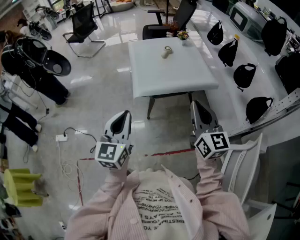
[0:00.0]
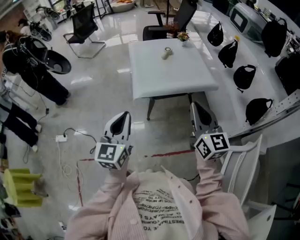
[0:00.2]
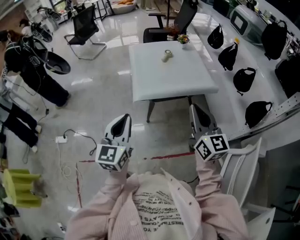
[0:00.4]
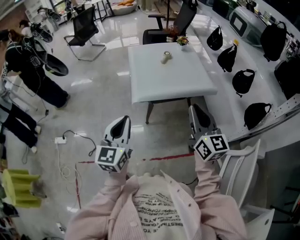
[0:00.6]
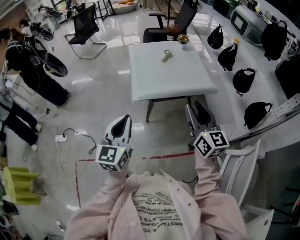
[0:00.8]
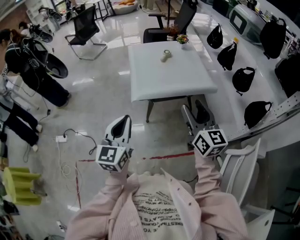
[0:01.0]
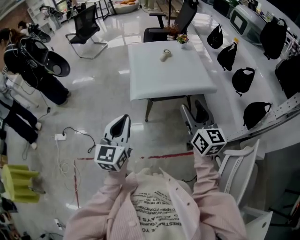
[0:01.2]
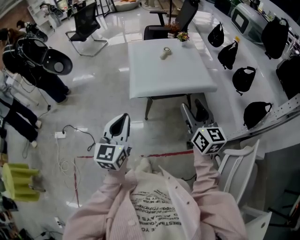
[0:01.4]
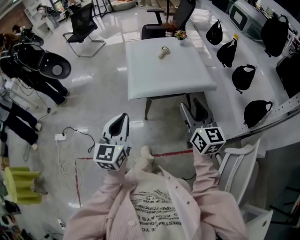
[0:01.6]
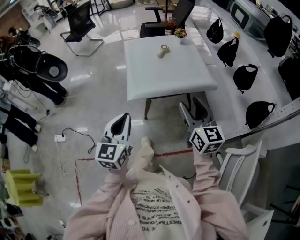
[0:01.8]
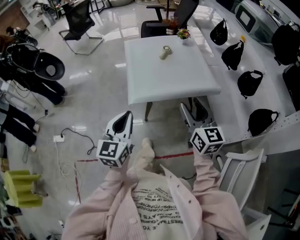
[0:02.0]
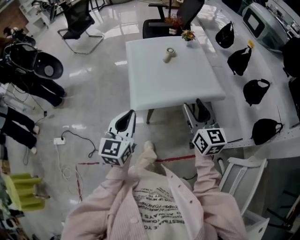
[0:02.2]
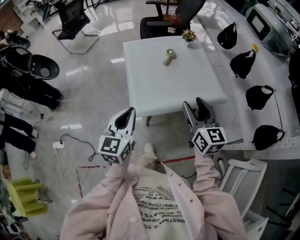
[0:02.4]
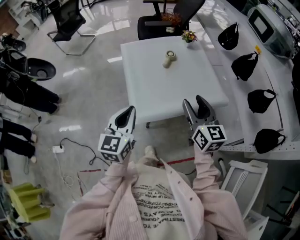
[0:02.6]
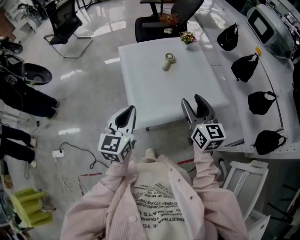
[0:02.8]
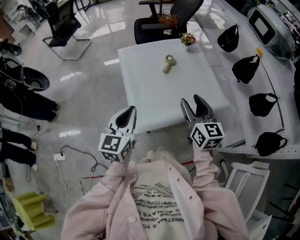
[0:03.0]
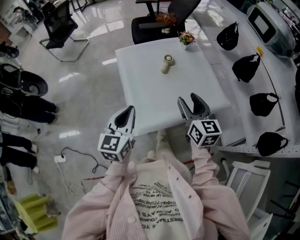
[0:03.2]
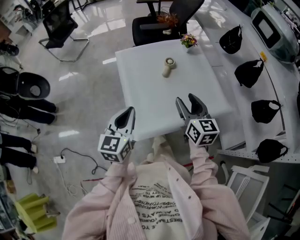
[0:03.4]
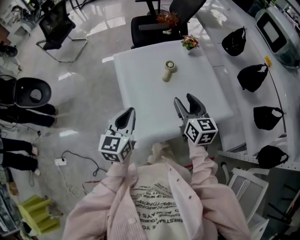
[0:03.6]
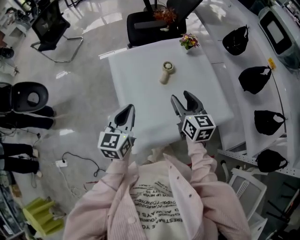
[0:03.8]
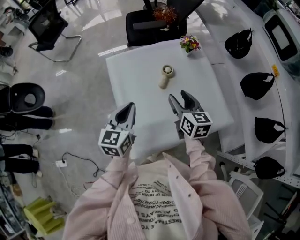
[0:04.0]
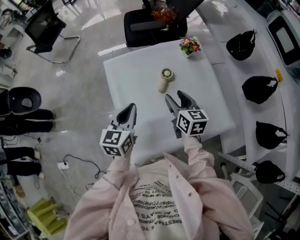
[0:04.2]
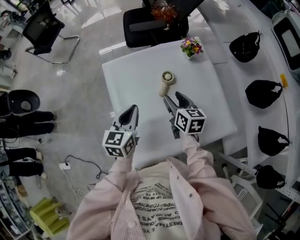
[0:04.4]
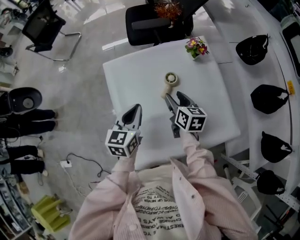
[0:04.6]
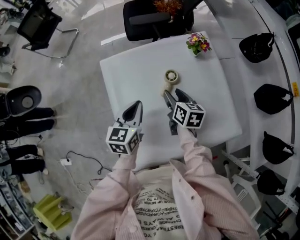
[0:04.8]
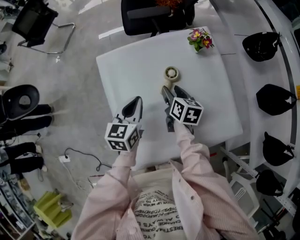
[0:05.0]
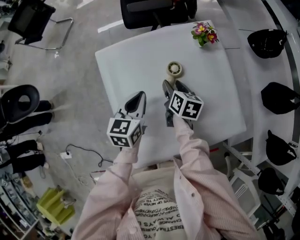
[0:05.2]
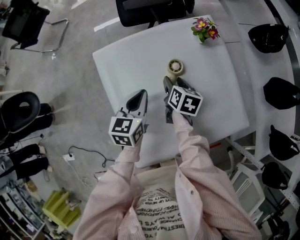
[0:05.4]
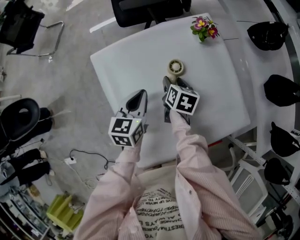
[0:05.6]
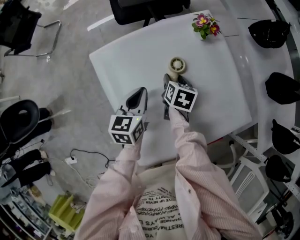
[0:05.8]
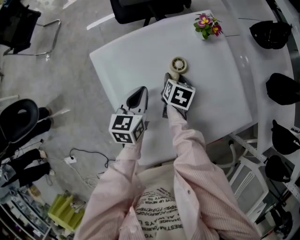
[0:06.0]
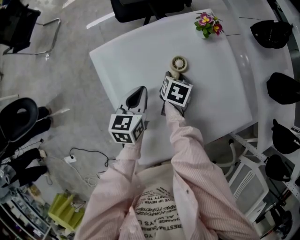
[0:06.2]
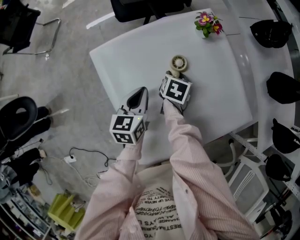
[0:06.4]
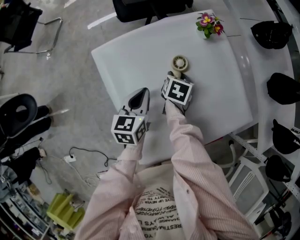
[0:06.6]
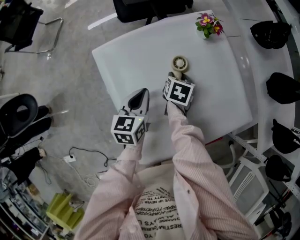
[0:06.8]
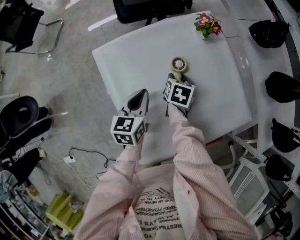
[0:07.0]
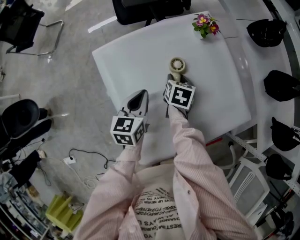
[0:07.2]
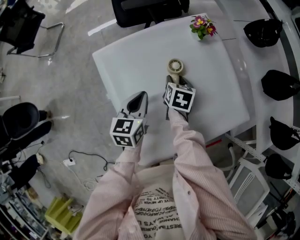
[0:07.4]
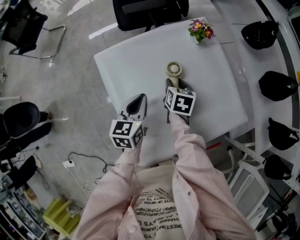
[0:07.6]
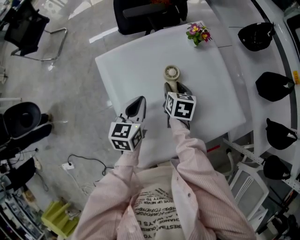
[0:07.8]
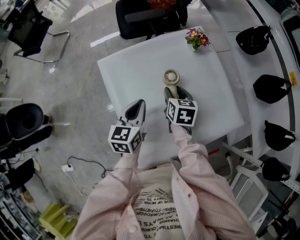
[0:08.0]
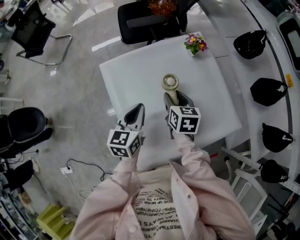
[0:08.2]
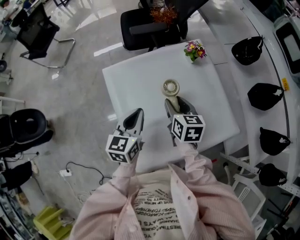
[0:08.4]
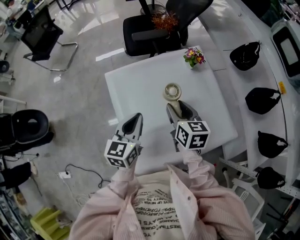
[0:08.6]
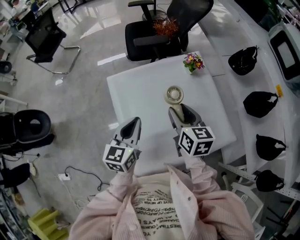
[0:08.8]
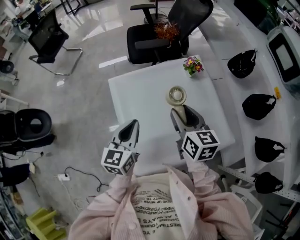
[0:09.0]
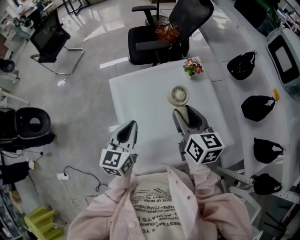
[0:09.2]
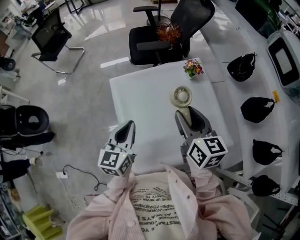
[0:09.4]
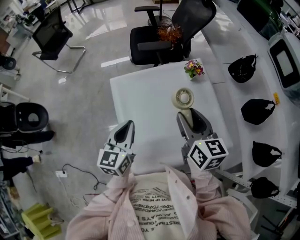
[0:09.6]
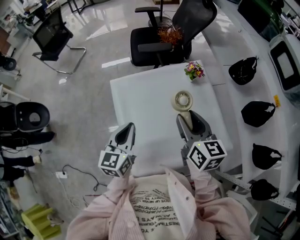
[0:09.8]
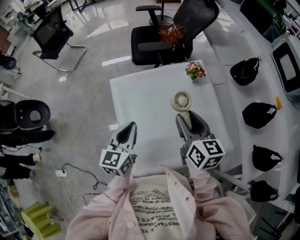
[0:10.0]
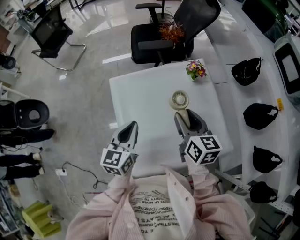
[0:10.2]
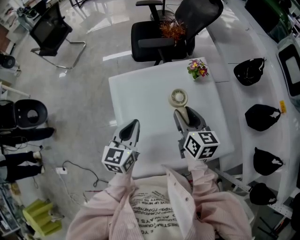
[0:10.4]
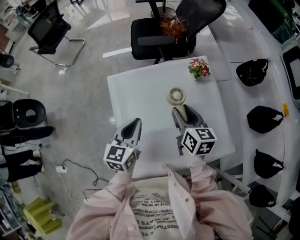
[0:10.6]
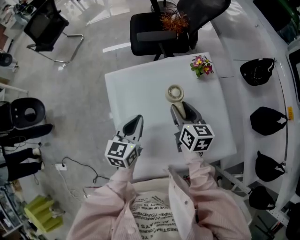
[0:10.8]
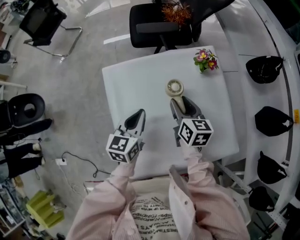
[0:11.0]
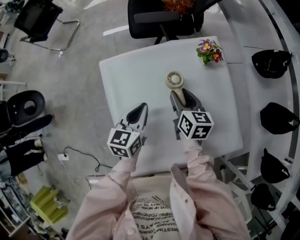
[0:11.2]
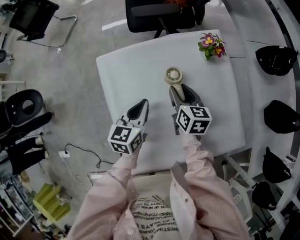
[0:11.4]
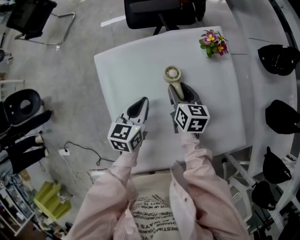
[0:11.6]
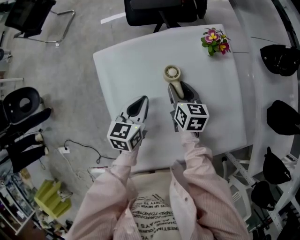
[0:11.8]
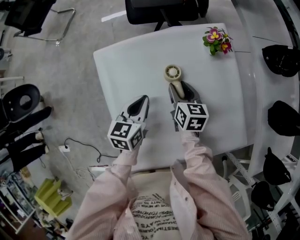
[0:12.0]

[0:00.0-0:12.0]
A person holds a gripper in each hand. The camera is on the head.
0:00.0 to 0:01.6: The right gripper shifts by some 5 cm, and opens.
0:01.6 to 0:03.0: The grippers both shift forward by some 30 cm.
0:03.0 to 0:04.4: The two grippers go approximately 30 cm forward and downward. The right gripper swivels approximately 20 degrees.
0:04.4 to 0:06.0: Both grippers travel together downward and forward, approximately 15 cm. The right gripper rotates some 40 degrees.
0:06.0 to 0:07.6: The grippers stay close to where they were, moving slightly.
0:07.6 to 0:09.0: The right gripper moves upward, some 25 cm, and changes its angle by some 30 degrees. The left gripper travels upward and backward by some 15 cm.
0:09.0 to 0:10.4: The right gripper ends up about 5 cm from where it was.
0:10.4 to 0:12.0: The right gripper is displaced downward by about 20 cm. The left gripper goes some 15 cm downward and forward.

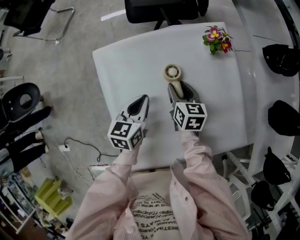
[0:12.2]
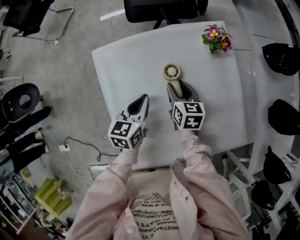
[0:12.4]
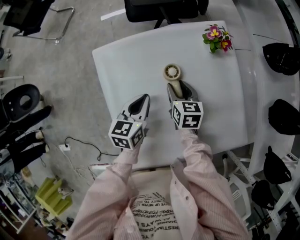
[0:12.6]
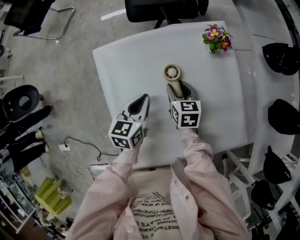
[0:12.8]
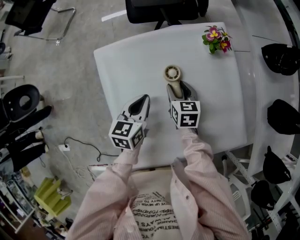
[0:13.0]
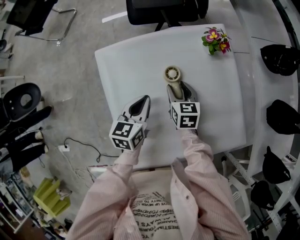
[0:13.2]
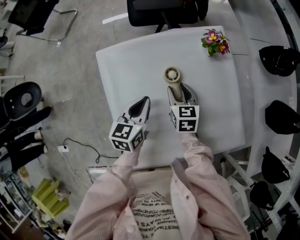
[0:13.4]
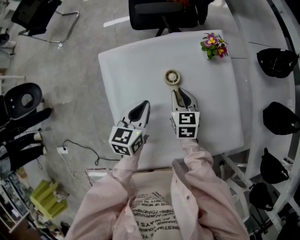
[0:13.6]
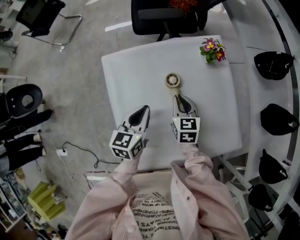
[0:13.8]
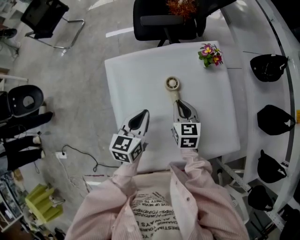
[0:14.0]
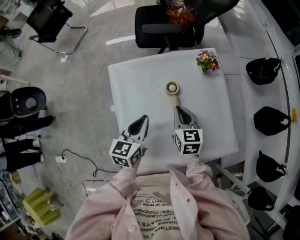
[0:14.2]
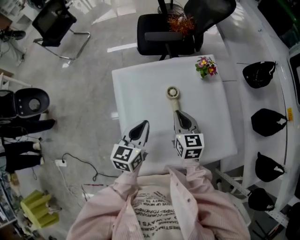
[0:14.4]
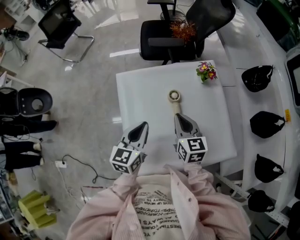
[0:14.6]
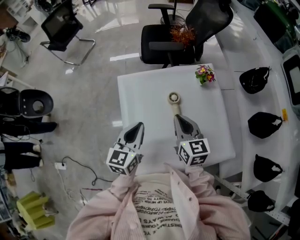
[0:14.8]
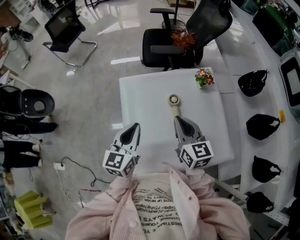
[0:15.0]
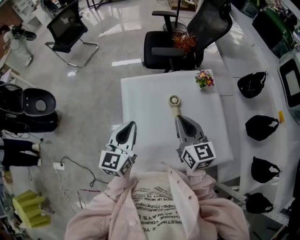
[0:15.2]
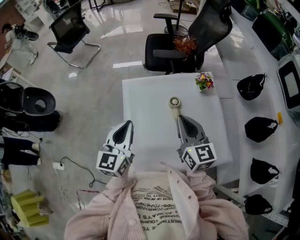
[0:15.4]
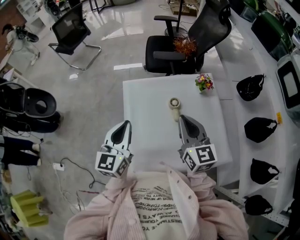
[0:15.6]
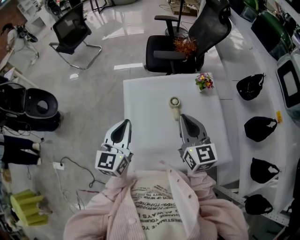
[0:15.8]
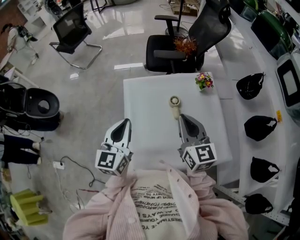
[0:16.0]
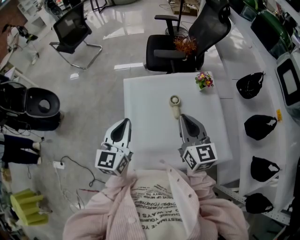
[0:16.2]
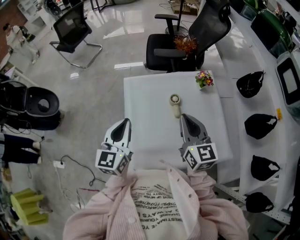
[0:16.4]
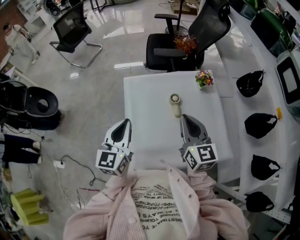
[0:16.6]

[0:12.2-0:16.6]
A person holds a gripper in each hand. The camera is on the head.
0:12.2 to 0:13.6: The right gripper closes.
0:13.6 to 0:15.2: The right gripper is displaced upward by some 25 cm, and changes its angle by about 30 degrees. The left gripper goes about 20 cm upward, backward and to the left, and rotates some 20 degrees.
0:15.2 to 0:16.6: There are only small adjustments of the grippers.

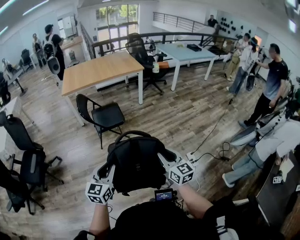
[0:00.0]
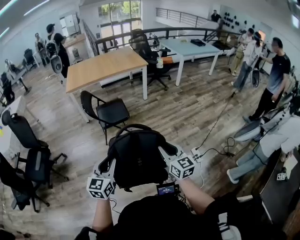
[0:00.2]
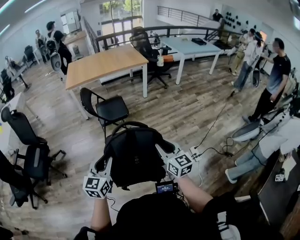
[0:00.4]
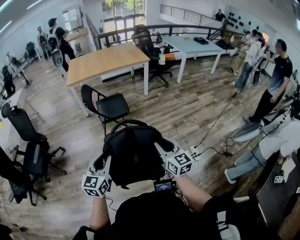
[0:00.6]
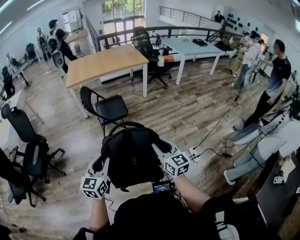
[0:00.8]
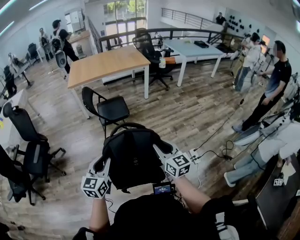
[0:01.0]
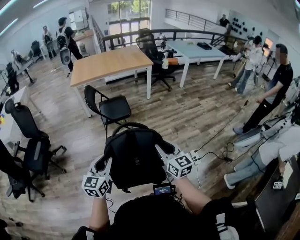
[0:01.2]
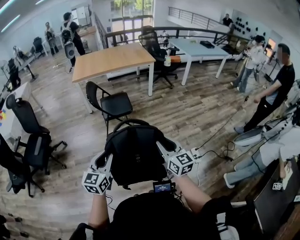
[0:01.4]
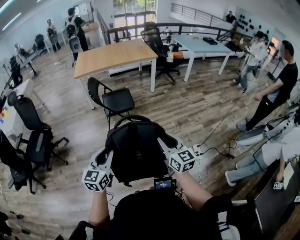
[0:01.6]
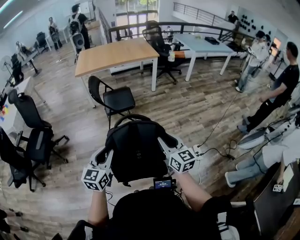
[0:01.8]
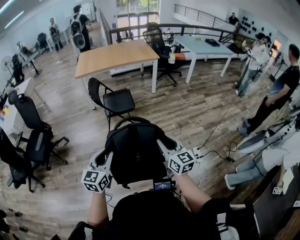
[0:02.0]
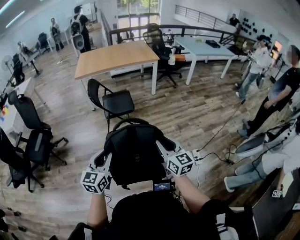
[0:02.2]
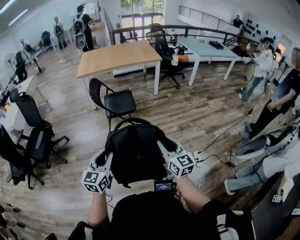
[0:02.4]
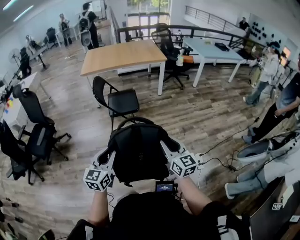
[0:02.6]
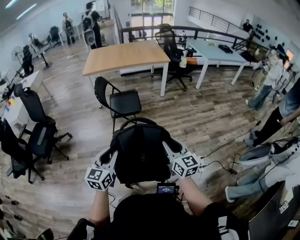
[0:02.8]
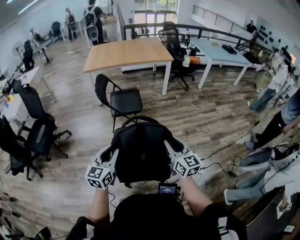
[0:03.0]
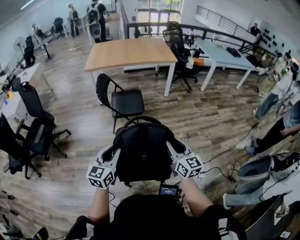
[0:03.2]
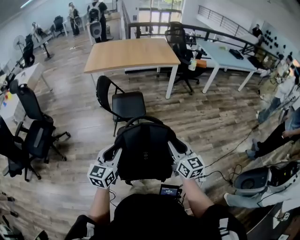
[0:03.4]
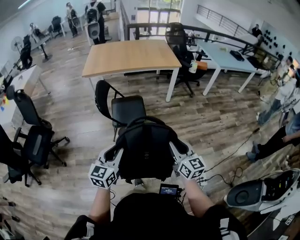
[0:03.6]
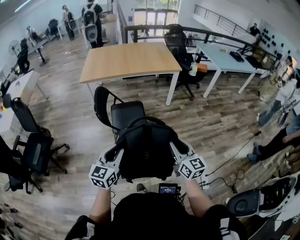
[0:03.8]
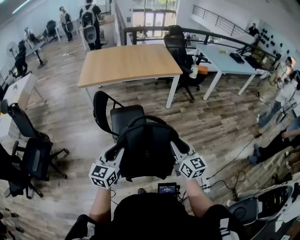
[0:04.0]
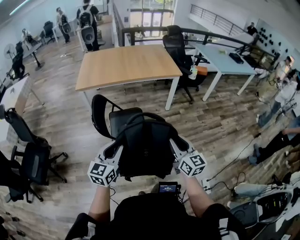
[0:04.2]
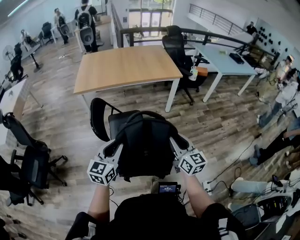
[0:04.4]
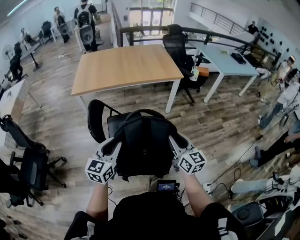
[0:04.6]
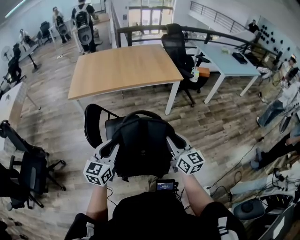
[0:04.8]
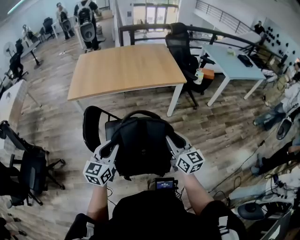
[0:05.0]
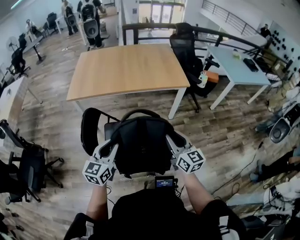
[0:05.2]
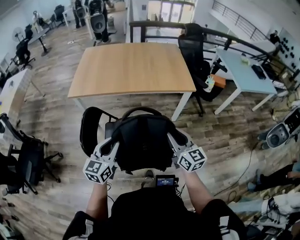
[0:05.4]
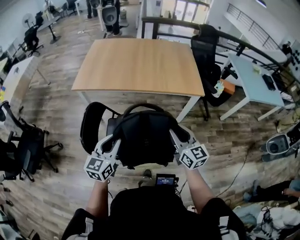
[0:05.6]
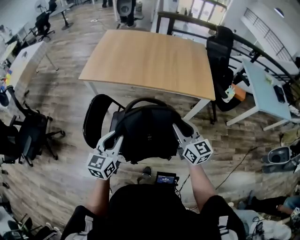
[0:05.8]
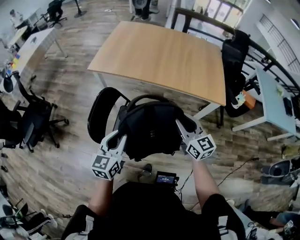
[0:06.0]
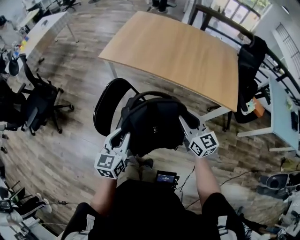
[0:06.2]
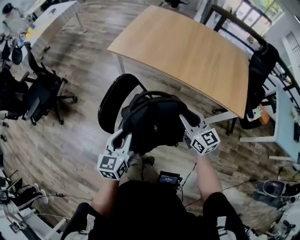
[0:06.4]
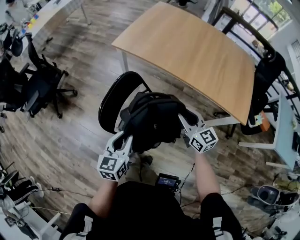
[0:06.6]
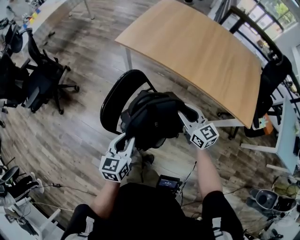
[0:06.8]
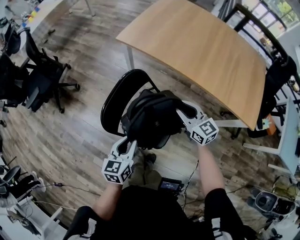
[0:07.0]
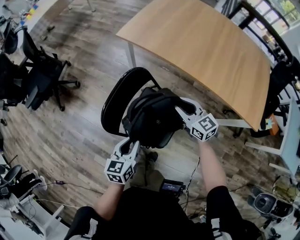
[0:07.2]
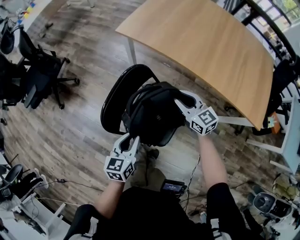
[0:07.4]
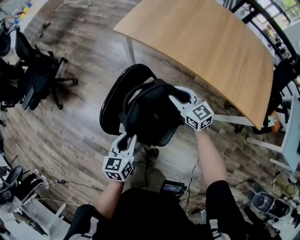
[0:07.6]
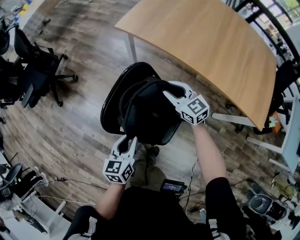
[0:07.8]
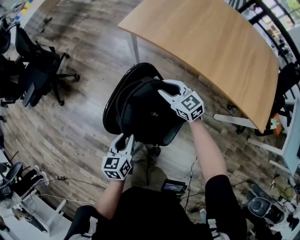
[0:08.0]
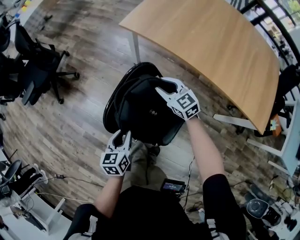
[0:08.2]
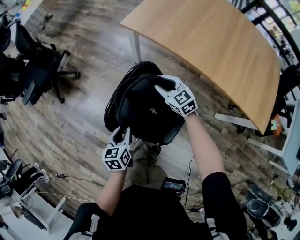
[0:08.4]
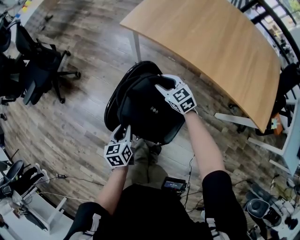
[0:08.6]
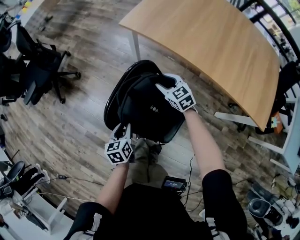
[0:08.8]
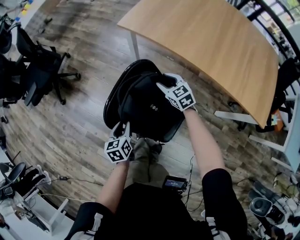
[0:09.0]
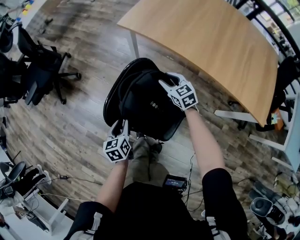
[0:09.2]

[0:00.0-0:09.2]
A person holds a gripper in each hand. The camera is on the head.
0:00.0 to 0:01.6: The grippers move only a little.
0:01.6 to 0:03.0: Both grippers move forward, roughly 10 cm.
0:03.0 to 0:04.6: Both grippers are carried forward, roughly 50 cm.
0:04.6 to 0:06.2: The right gripper ends up about 40 cm from where it was, and turns by some 40 degrees. The left gripper changes place by roughly 25 cm, and rotates some 40 degrees.
0:06.2 to 0:07.6: The right gripper travels forward, downward and to the left by approximately 35 cm, and rotates roughly 30 degrees, while the left gripper travels downward, forward and to the left by about 20 cm, and rotates approximately 20 degrees.
0:07.6 to 0:09.2: The left gripper heads downward and to the left, covering some 10 cm. Meanwhile the right gripper moves downward and forward, roughly 10 cm.
